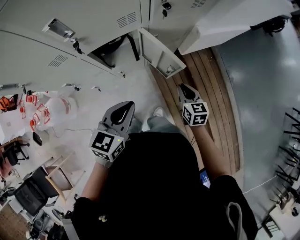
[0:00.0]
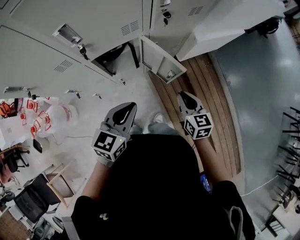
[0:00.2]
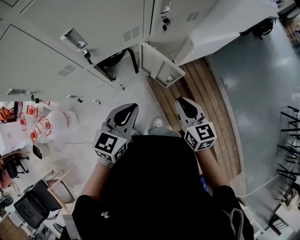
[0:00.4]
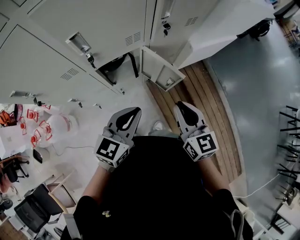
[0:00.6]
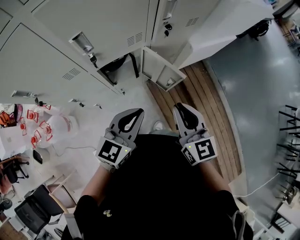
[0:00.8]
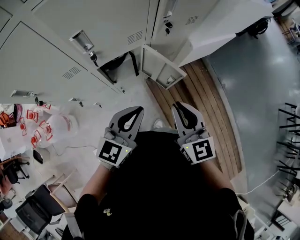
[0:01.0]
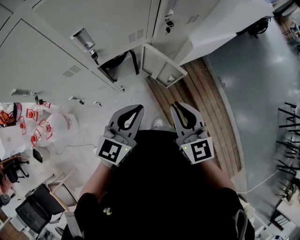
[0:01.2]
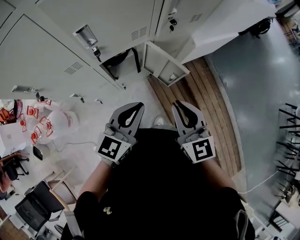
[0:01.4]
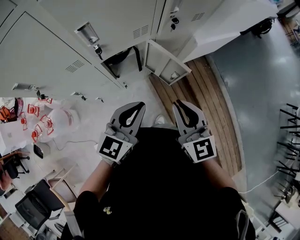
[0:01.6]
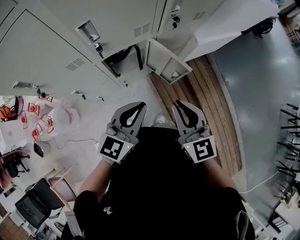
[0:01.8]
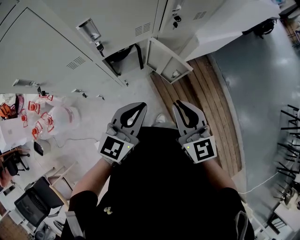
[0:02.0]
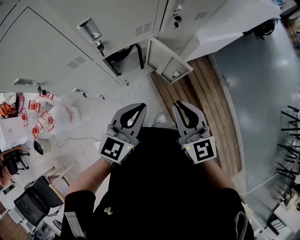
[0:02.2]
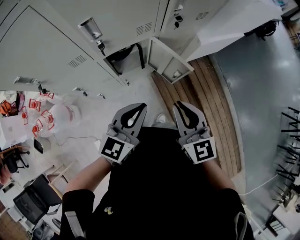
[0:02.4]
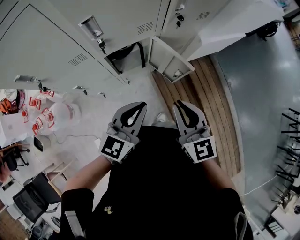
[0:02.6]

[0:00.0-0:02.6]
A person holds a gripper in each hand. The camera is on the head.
0:00.0 to 0:01.2: The left gripper heads upward, covering roughly 10 cm; the right gripper moves upward and to the left, approximately 30 cm, and turns by some 30 degrees.
0:01.2 to 0:02.6: The grippers stay close to where they were, moving slightly.

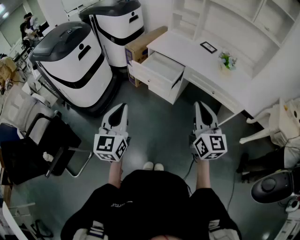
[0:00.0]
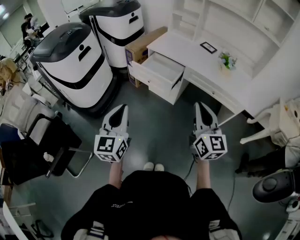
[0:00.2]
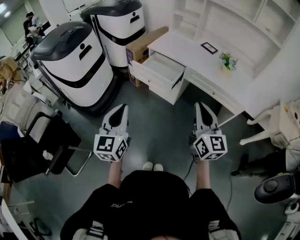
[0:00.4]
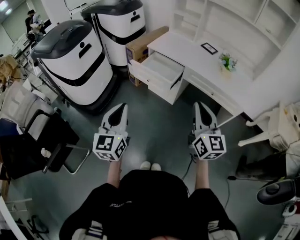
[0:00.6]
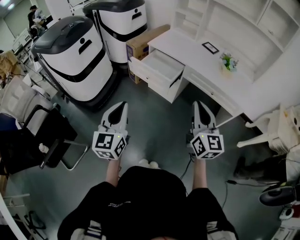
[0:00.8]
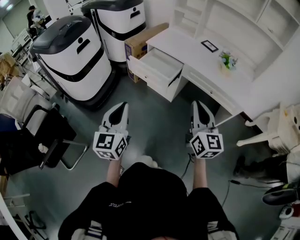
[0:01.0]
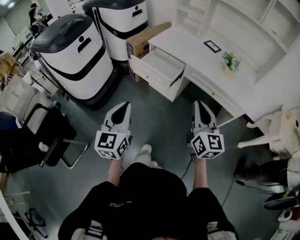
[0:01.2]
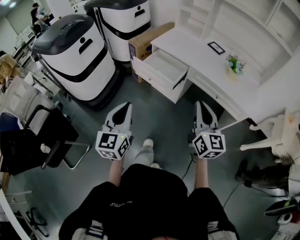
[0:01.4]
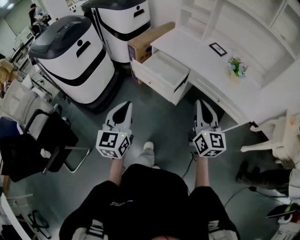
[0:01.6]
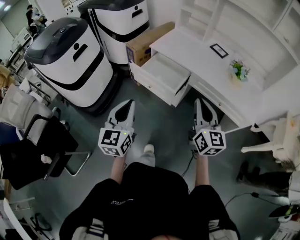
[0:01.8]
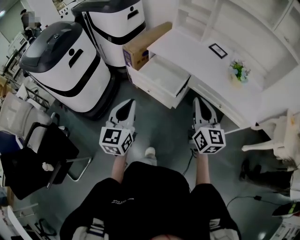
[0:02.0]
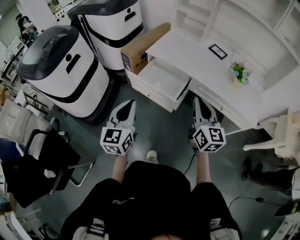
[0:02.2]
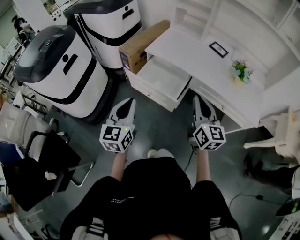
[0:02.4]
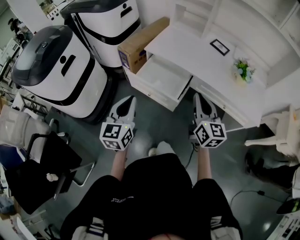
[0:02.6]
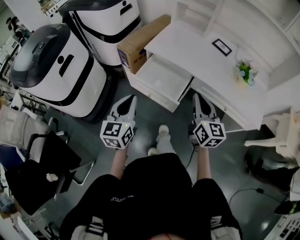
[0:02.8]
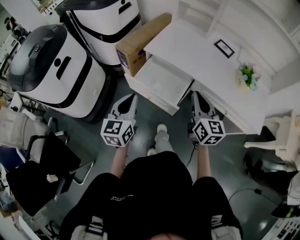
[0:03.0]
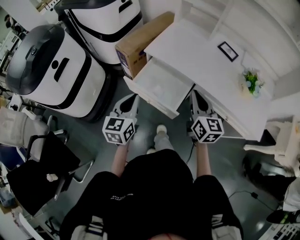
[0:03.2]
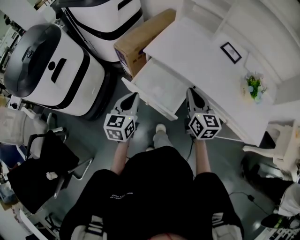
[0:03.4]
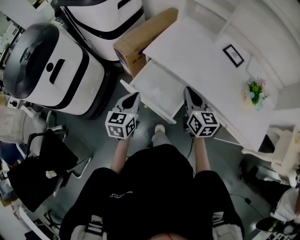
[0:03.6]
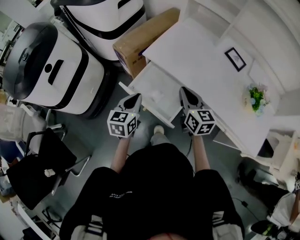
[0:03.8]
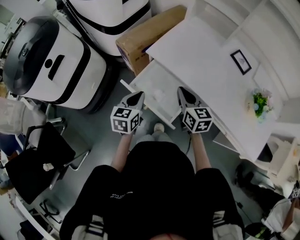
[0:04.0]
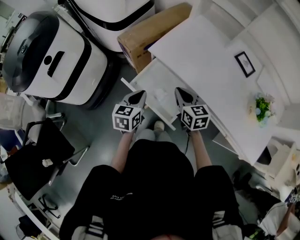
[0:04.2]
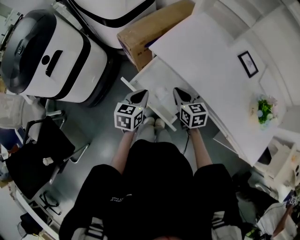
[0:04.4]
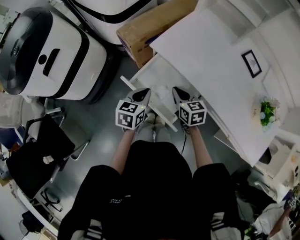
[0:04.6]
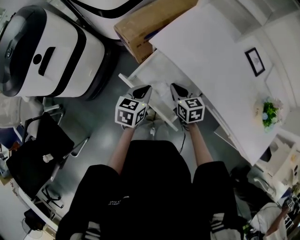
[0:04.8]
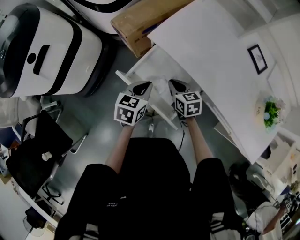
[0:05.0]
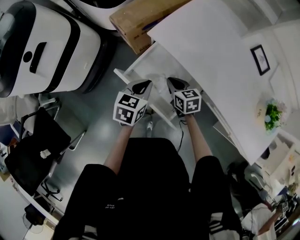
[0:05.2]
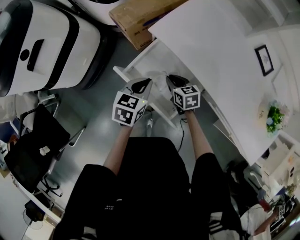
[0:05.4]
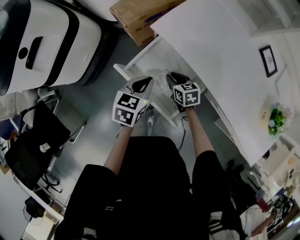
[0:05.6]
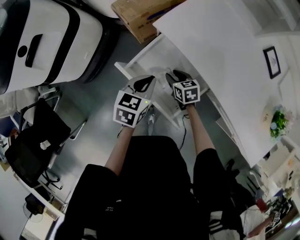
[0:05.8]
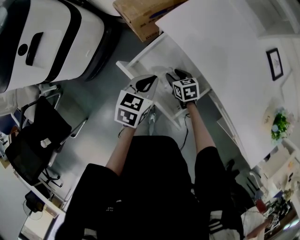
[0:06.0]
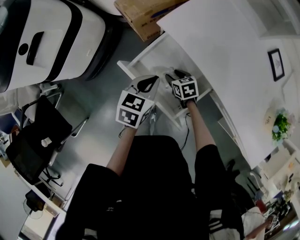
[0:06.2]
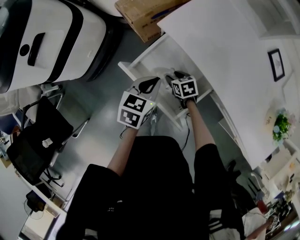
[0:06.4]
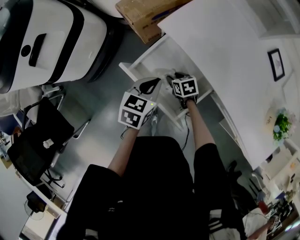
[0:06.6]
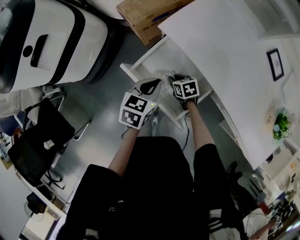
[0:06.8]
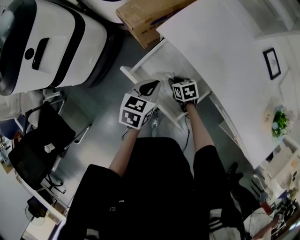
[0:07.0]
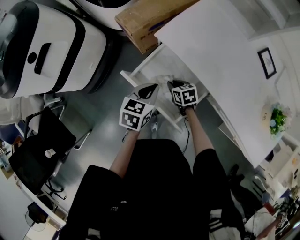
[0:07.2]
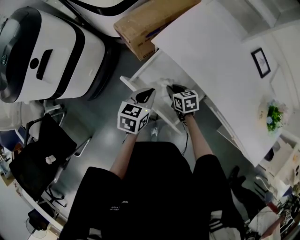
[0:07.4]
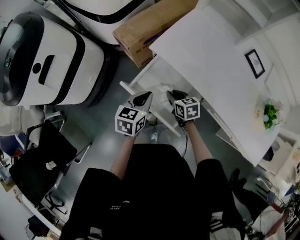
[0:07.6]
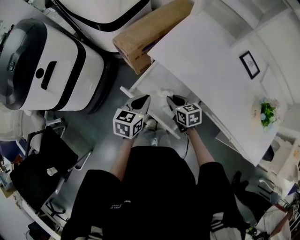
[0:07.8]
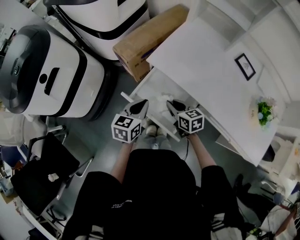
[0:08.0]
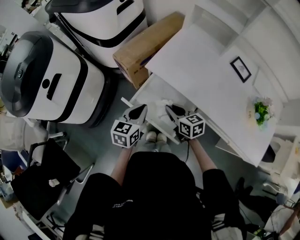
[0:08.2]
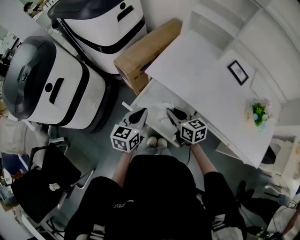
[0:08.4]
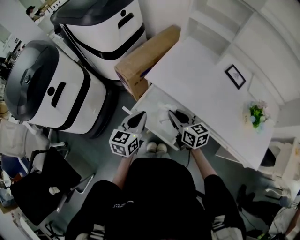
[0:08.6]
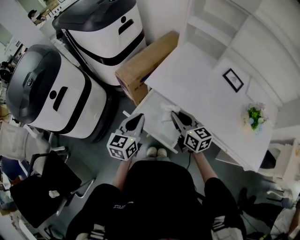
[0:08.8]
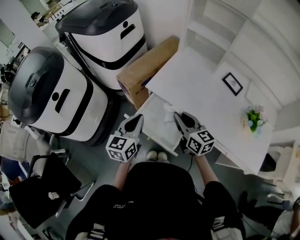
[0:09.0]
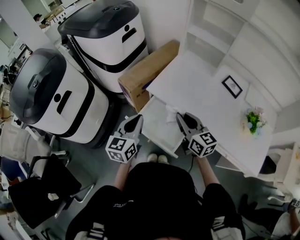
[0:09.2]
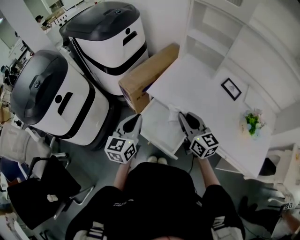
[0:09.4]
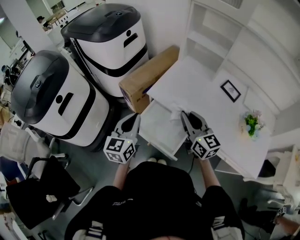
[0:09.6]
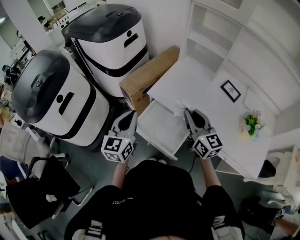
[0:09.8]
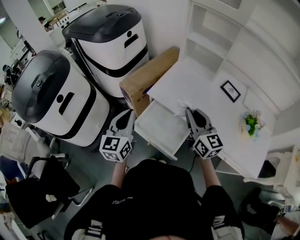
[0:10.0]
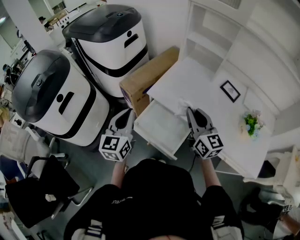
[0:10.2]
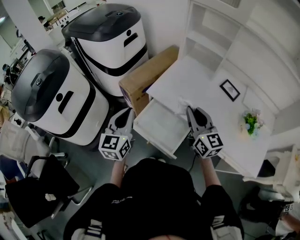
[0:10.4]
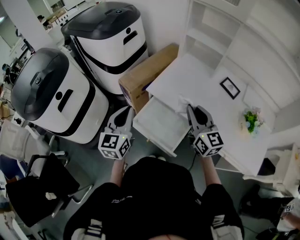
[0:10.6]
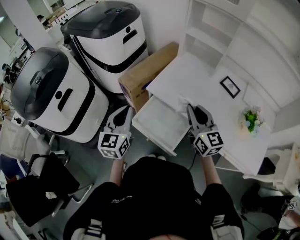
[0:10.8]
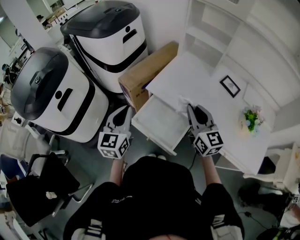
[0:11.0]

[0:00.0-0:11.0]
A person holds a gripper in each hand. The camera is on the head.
0:00.0 to 0:01.6: The two grippers go approximately 10 cm forward.
0:01.6 to 0:03.2: Both grippers move forward, roughly 30 cm.
0:03.2 to 0:04.8: Both grippers move downward and forward, about 25 cm. The right gripper swivels some 40 degrees. The left gripper turns by roughly 20 degrees.
0:04.8 to 0:06.2: The right gripper heads downward, covering roughly 20 cm, rotates about 20 degrees, and opens up.
0:06.2 to 0:07.8: The right gripper is displaced upward by approximately 15 cm, and closes up. The left gripper heads upward, covering roughly 5 cm.
0:07.8 to 0:09.4: The left gripper goes approximately 15 cm upward, and changes its angle by approximately 30 degrees. The right gripper travels upward by approximately 25 cm, and angles its fingers upward, by roughly 30 degrees.
0:09.4 to 0:11.0: The right gripper ends up roughly 5 cm from where it was.

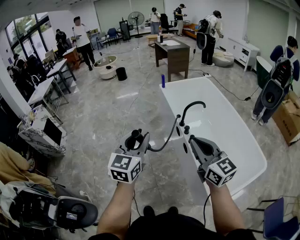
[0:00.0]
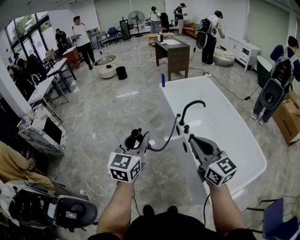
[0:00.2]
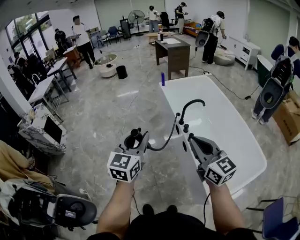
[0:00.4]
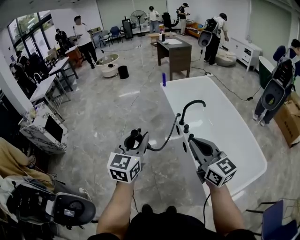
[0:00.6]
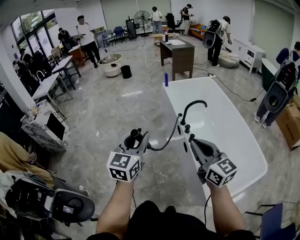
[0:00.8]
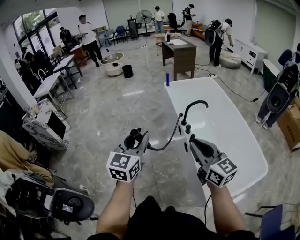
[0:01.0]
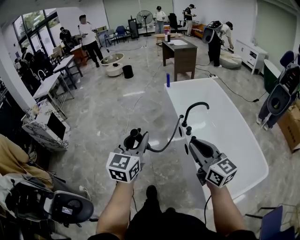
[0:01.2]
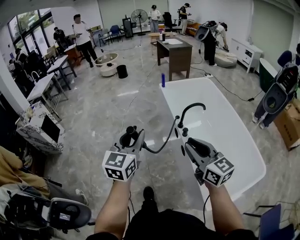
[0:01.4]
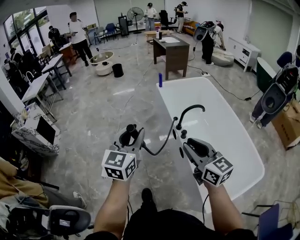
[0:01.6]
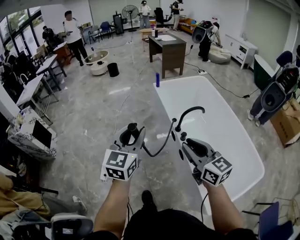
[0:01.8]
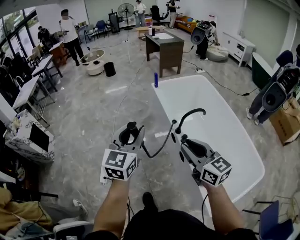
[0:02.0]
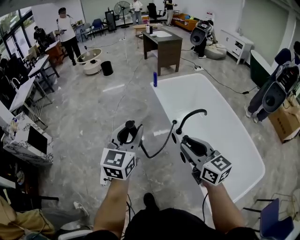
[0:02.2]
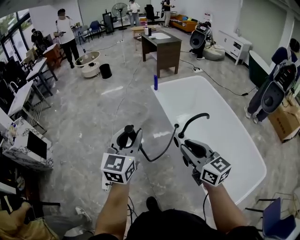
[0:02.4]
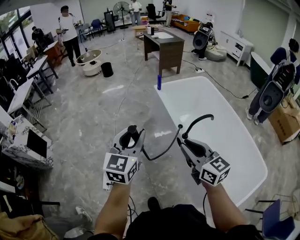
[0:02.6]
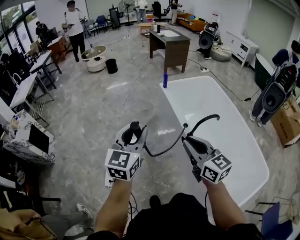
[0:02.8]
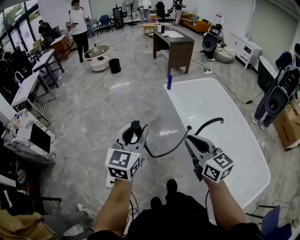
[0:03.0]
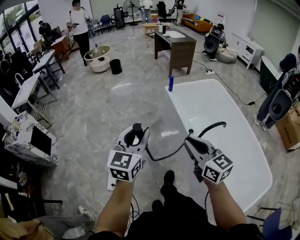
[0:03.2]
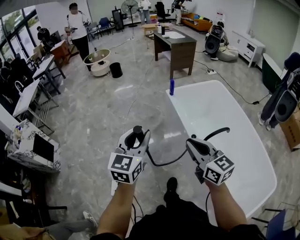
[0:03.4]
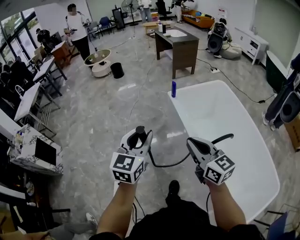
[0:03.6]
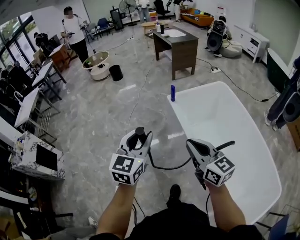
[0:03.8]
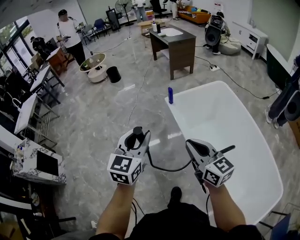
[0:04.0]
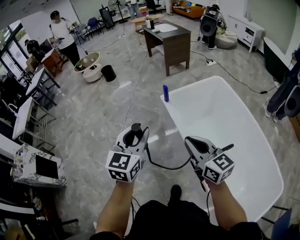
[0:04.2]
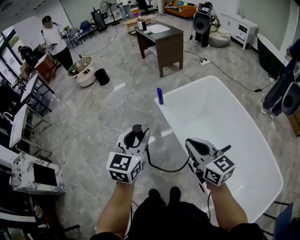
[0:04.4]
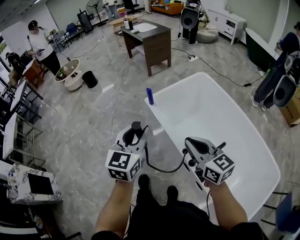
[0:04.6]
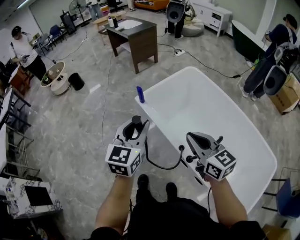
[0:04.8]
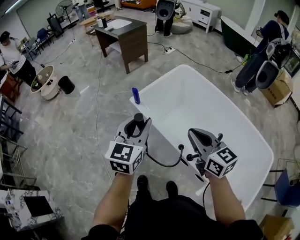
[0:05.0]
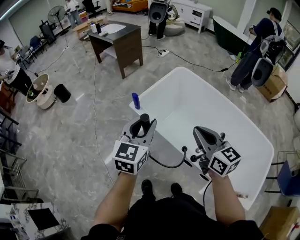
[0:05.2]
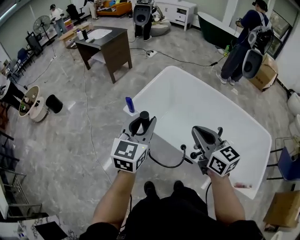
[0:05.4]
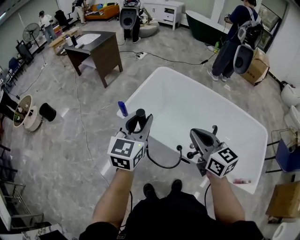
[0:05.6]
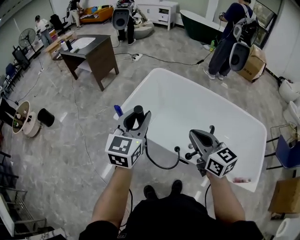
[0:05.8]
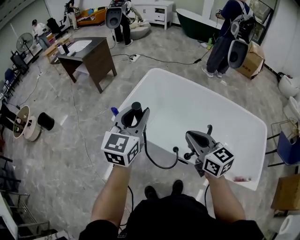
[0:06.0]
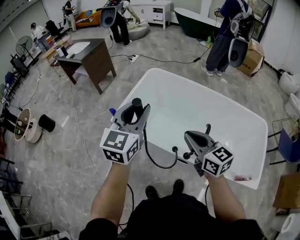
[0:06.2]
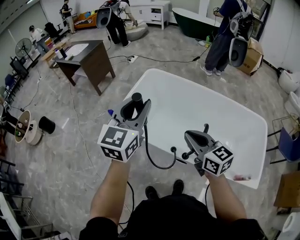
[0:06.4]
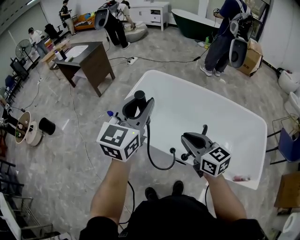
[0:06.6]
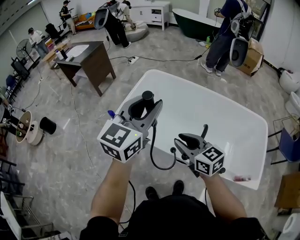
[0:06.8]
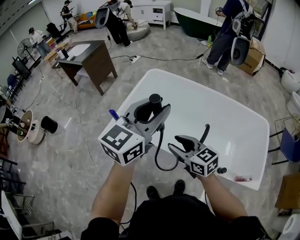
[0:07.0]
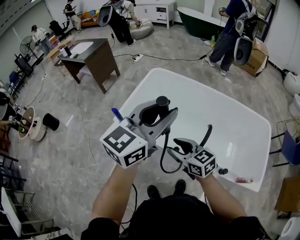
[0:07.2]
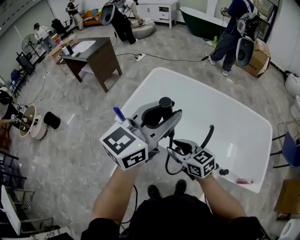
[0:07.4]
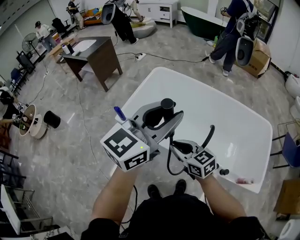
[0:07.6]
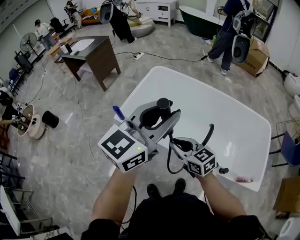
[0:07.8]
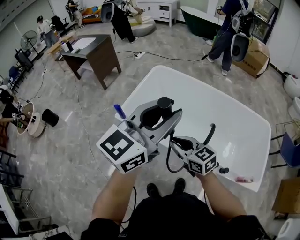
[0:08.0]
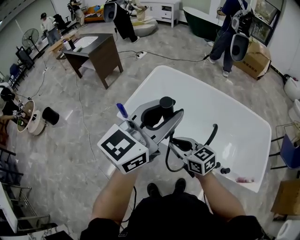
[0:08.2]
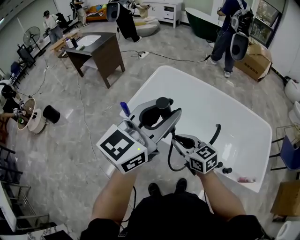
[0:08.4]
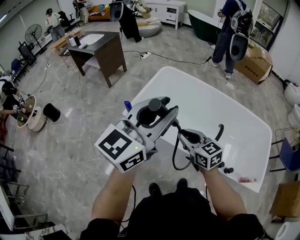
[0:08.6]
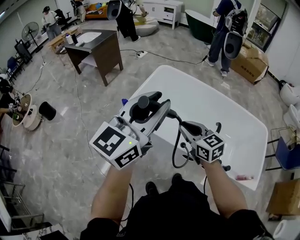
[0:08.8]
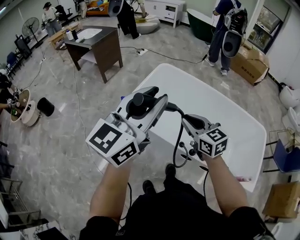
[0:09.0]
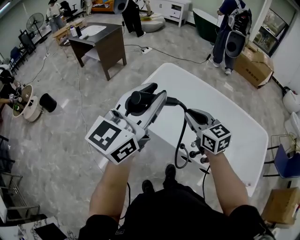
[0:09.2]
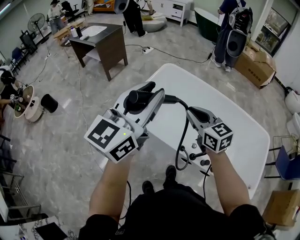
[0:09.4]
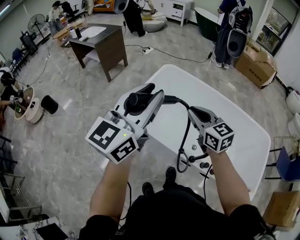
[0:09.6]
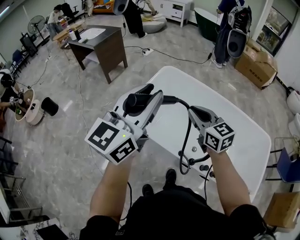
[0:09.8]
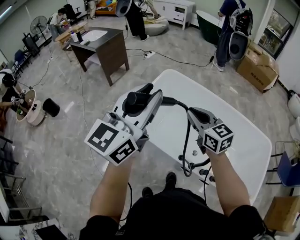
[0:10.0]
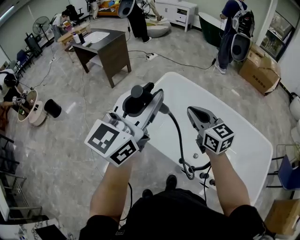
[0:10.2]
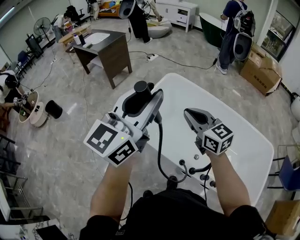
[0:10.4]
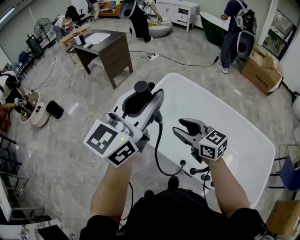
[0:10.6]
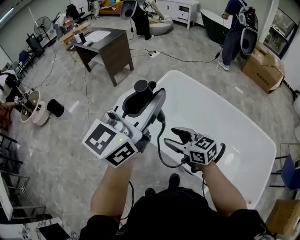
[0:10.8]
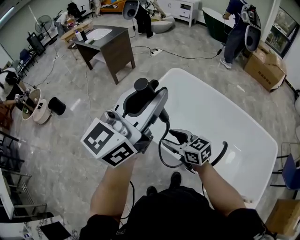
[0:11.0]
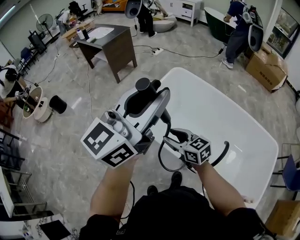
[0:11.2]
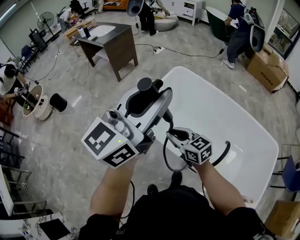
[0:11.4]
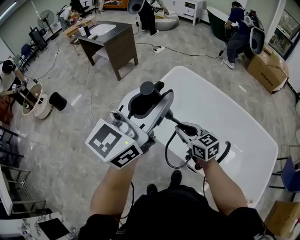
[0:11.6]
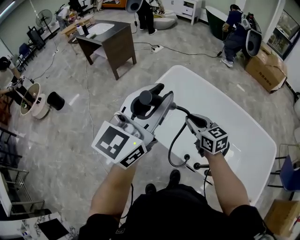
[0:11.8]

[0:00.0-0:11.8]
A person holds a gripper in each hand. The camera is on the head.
0:00.0 to 0:01.4: The grippers make only small movements.
0:01.4 to 0:03.0: Both grippers move forward and to the left, some 25 cm.
0:03.0 to 0:04.4: The left gripper is displaced forward and to the right by some 30 cm. Meanwhile the right gripper moves forward, approximately 25 cm.
0:04.4 to 0:06.0: The left gripper shifts by roughly 20 cm, and swivels some 40 degrees. The right gripper moves about 5 cm, and swivels about 40 degrees.
0:06.0 to 0:07.4: The left gripper is displaced to the right, upward and backward by about 15 cm, and turns by about 30 degrees. Meanwhile the right gripper is displaced downward by roughly 10 cm, and opens up.
0:07.4 to 0:08.8: The right gripper moves roughly 5 cm, and closes. The left gripper moves to the left, some 15 cm.
0:08.8 to 0:10.4: The left gripper goes some 10 cm forward. The right gripper shifts roughly 15 cm forward and upward.
0:10.4 to 0:11.8: The right gripper heads downward, covering approximately 10 cm, and opens, then closes again.
